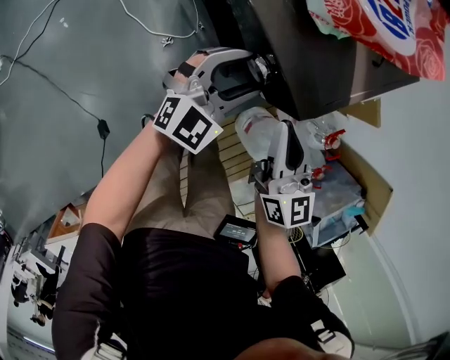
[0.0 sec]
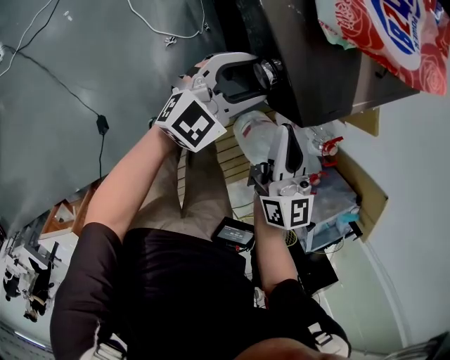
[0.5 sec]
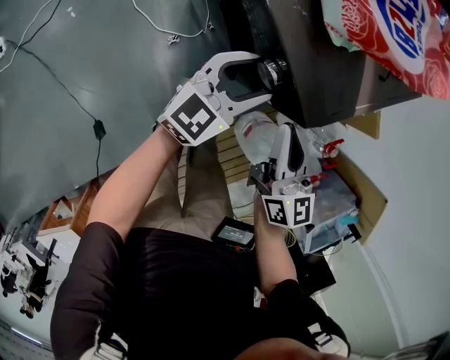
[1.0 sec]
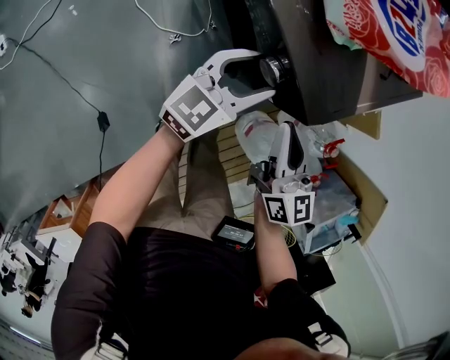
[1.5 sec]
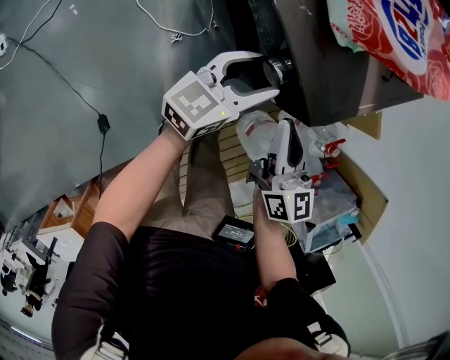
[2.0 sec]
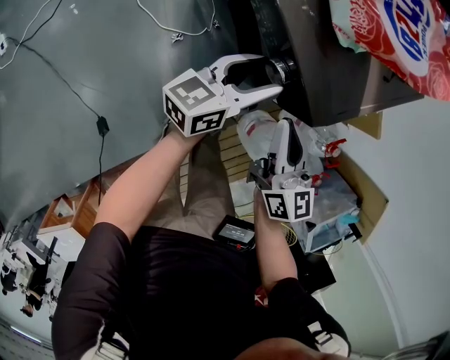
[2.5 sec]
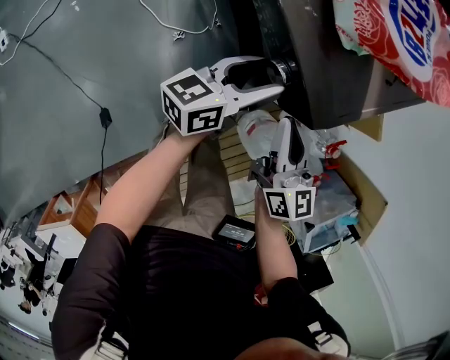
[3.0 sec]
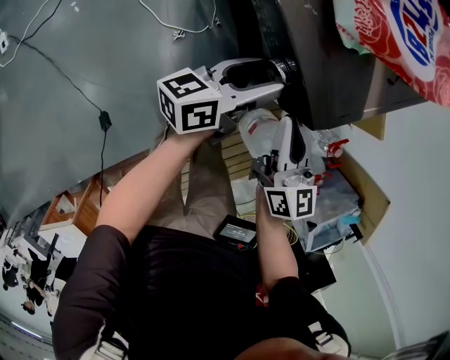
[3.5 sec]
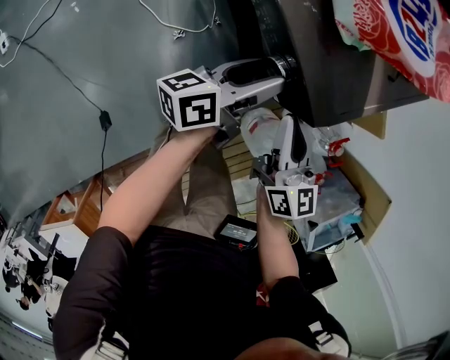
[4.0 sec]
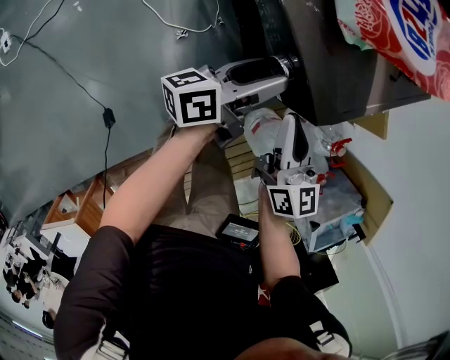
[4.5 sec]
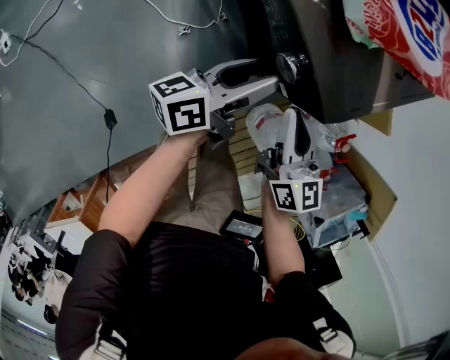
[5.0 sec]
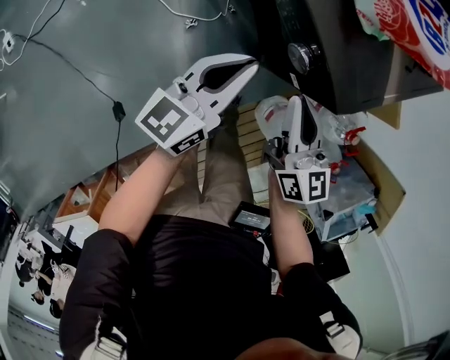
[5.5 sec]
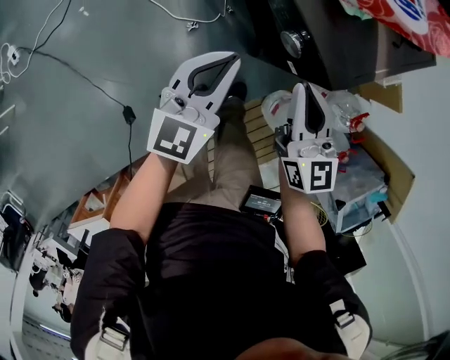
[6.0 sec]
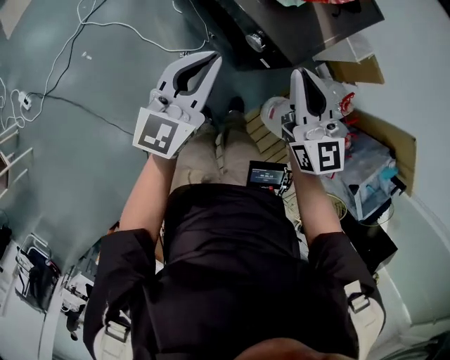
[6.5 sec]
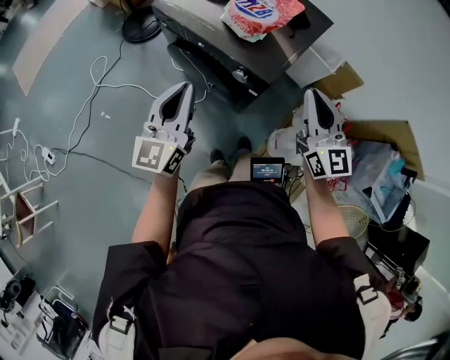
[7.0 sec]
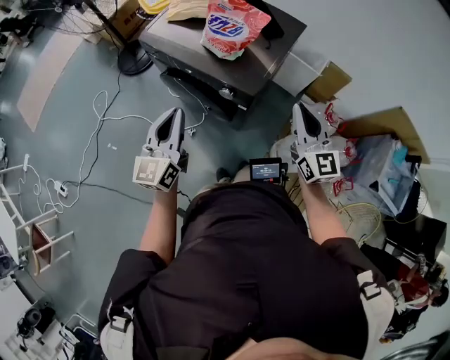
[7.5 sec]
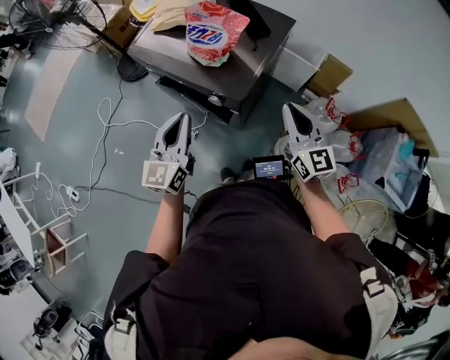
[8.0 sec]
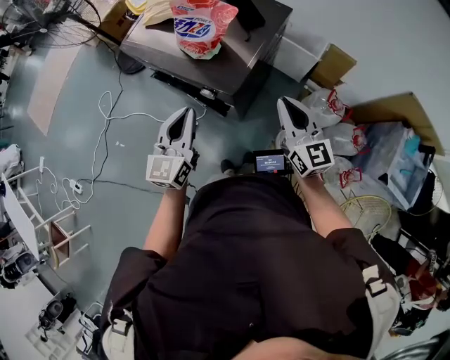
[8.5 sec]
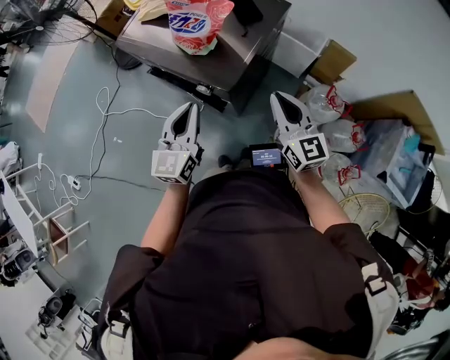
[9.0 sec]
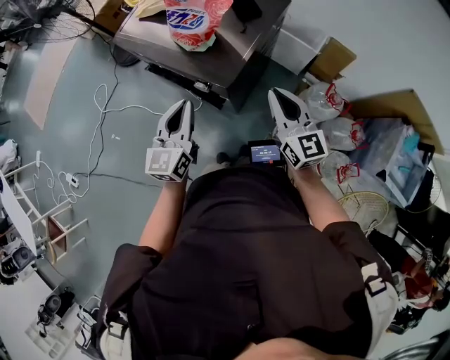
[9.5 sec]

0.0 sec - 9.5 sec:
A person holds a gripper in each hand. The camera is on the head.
0.0 sec - 2.0 sec: The left gripper rolls counterclockwise, seen from behind, by approximately 40 degrees.
2.0 sec - 4.0 sec: The left gripper turns by roughly 40 degrees.
4.0 sec - 5.5 sec: The left gripper goes roughly 5 cm to the left, rotates roughly 30 degrees, and closes its fingers.
5.5 sec - 7.5 sec: The left gripper heads upward, covering approximately 25 cm, and turns by some 20 degrees; the right gripper travels upward and to the right by some 30 cm, and swivels approximately 30 degrees.
7.5 sec - 9.5 sec: The left gripper goes roughly 15 cm to the right; the right gripper is displaced downward by roughly 5 cm.

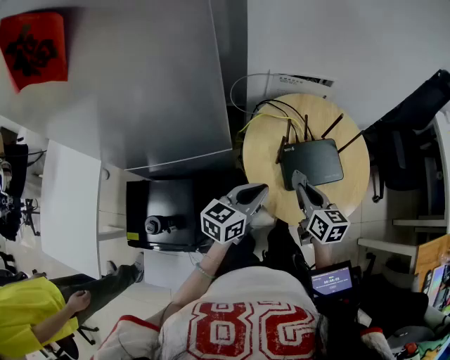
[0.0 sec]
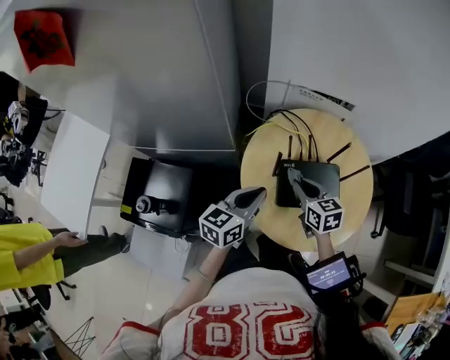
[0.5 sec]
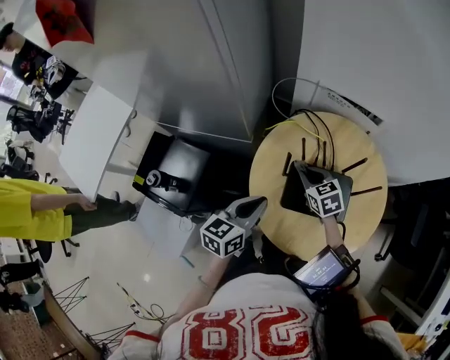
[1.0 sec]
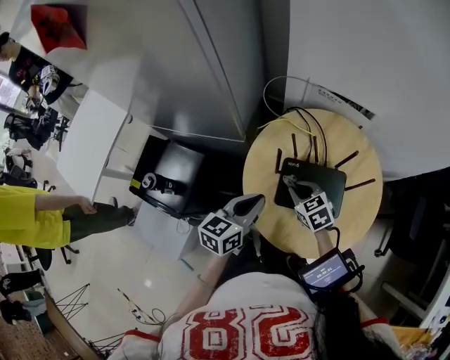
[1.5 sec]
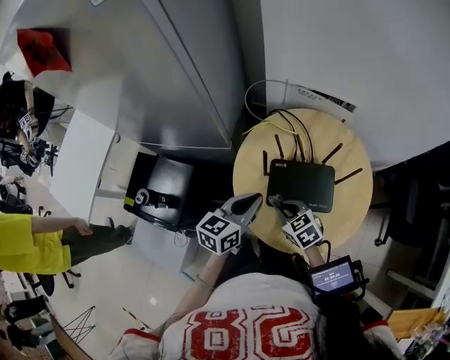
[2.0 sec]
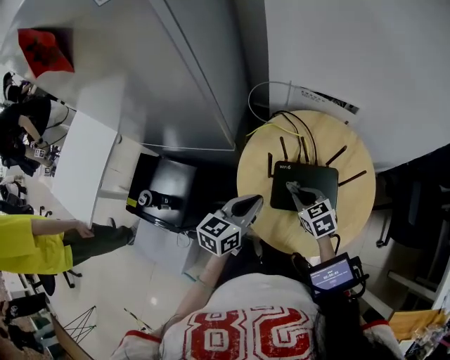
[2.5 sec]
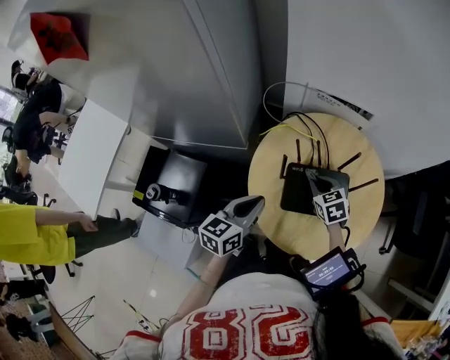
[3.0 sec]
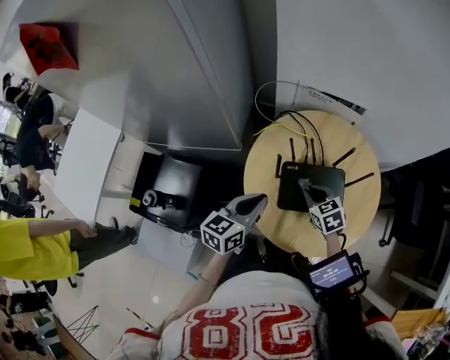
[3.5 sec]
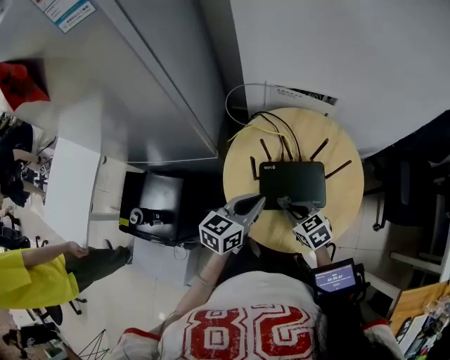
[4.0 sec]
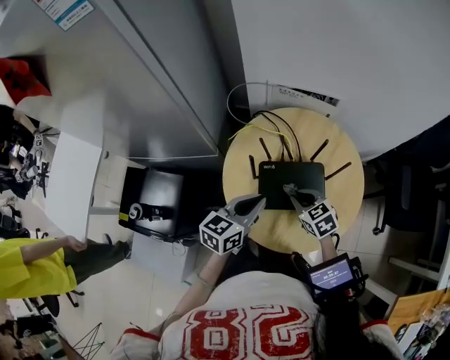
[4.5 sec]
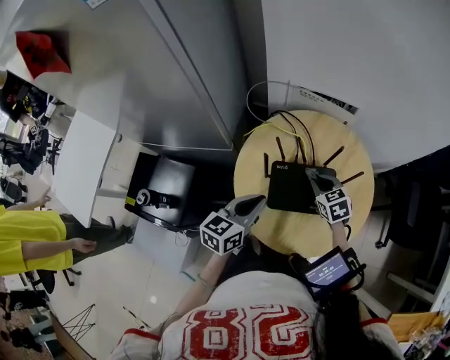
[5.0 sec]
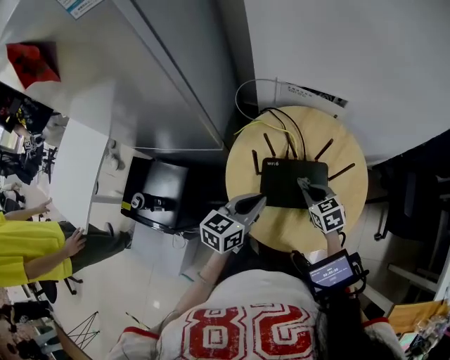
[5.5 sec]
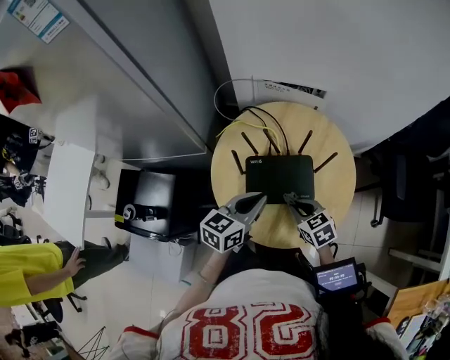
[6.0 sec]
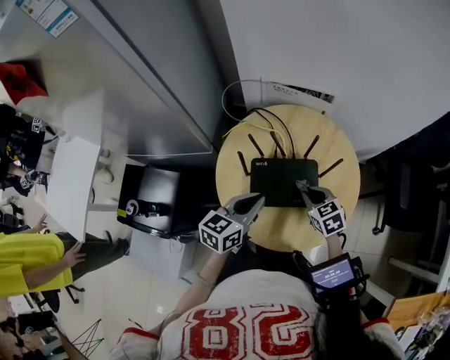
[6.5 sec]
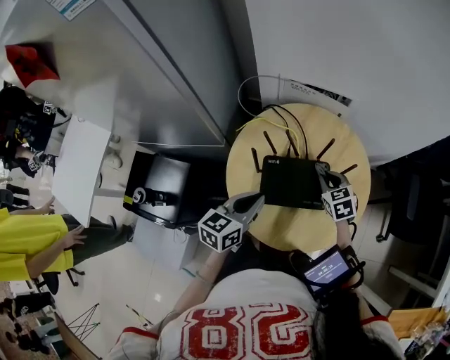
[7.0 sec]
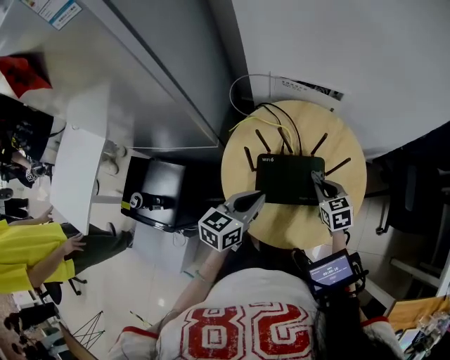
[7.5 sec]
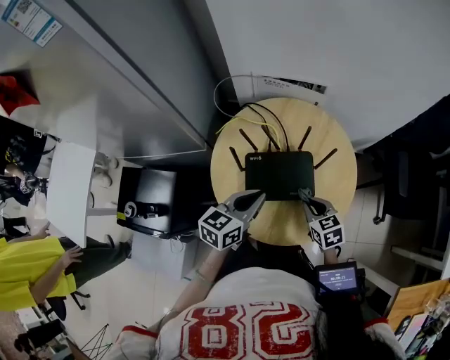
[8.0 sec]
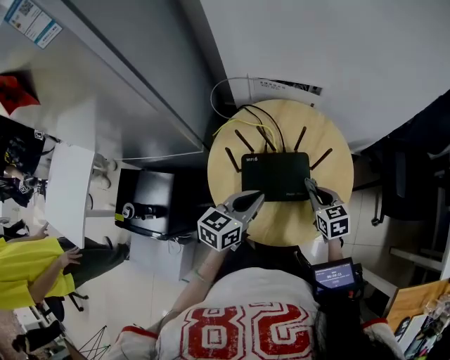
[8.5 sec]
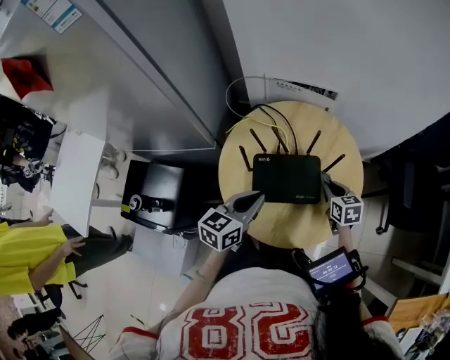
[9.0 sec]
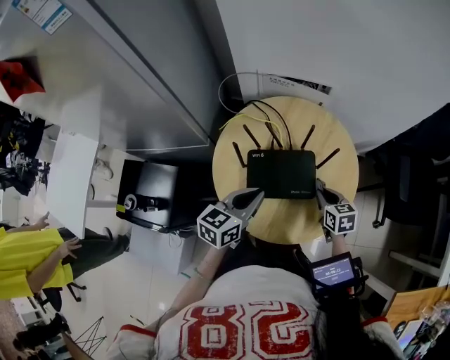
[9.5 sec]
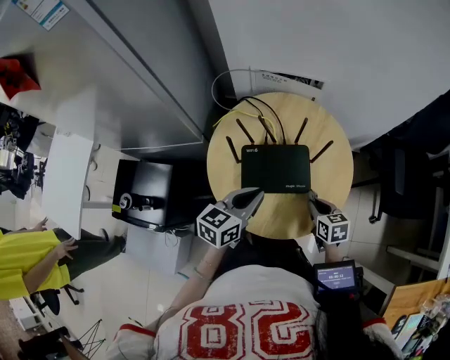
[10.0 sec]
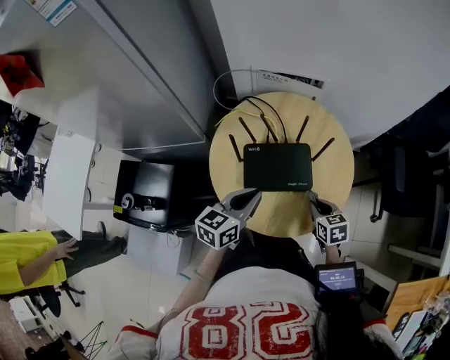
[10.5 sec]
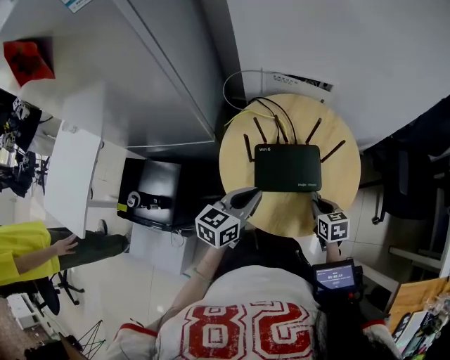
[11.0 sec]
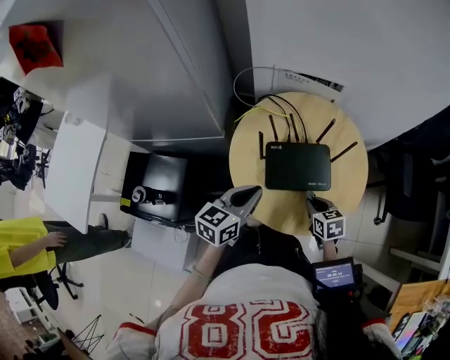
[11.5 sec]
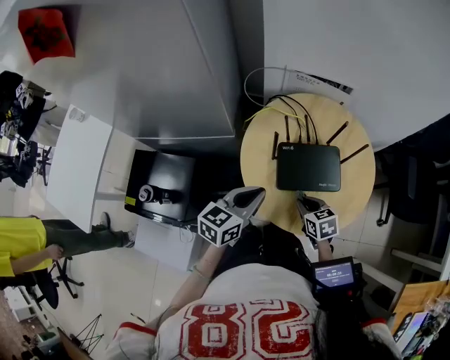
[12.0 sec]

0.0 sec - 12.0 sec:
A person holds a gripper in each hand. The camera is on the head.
0.0 sec - 2.0 sec: The left gripper ends up about 5 cm from where it was, and turns by some 20 degrees. Meanwhile the right gripper moves downward, about 10 cm, and changes its angle by approximately 50 degrees.
2.0 sec - 4.0 sec: The right gripper moves to the right, roughly 5 cm, and travels forward and back again, some 10 cm each way.
4.0 sec - 6.0 sec: Both grippers travel together to the right, roughly 5 cm. The right gripper goes forward and returns, about 10 cm each way.
6.0 sec - 8.0 sec: The right gripper reaches approximately 15 cm forward, then returns.
8.0 sec - 10.0 sec: The right gripper goes forward and returns, roughly 10 cm each way.
10.0 sec - 12.0 sec: Both grippers travel together to the left, approximately 15 cm.

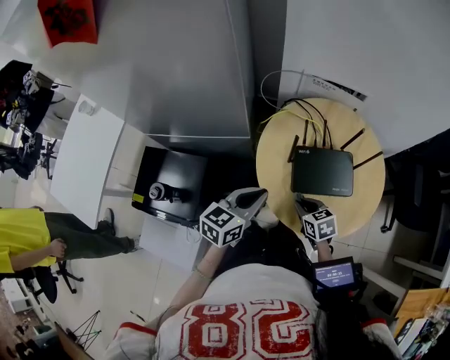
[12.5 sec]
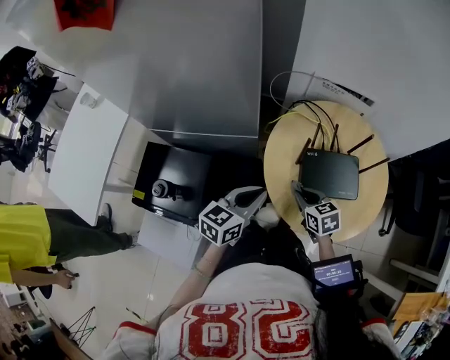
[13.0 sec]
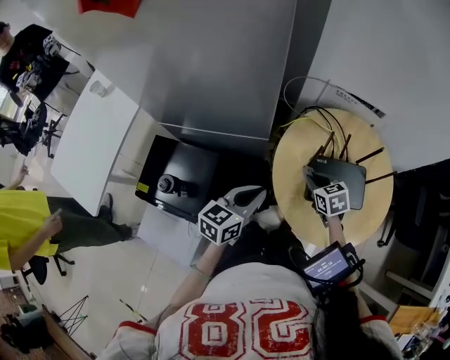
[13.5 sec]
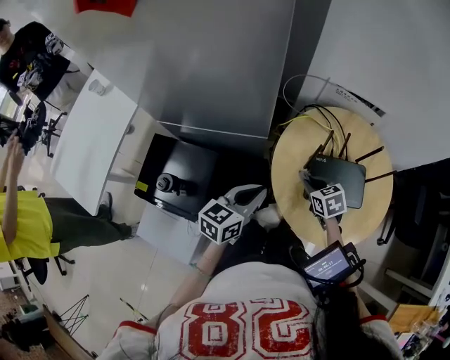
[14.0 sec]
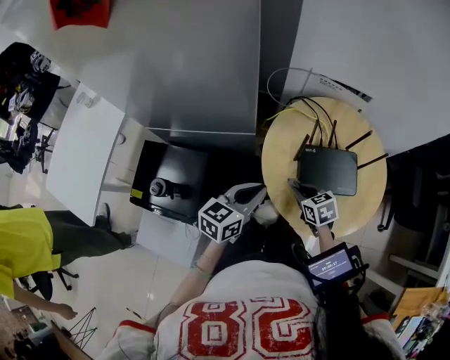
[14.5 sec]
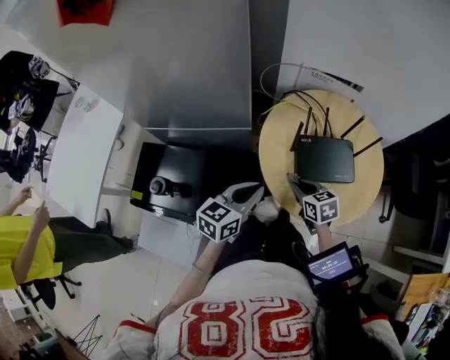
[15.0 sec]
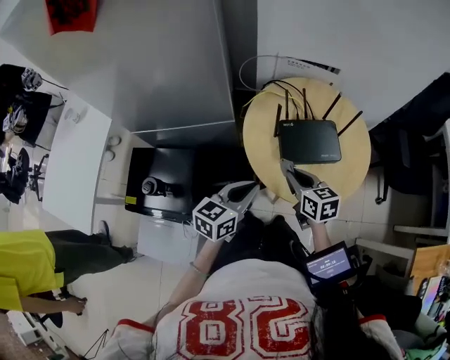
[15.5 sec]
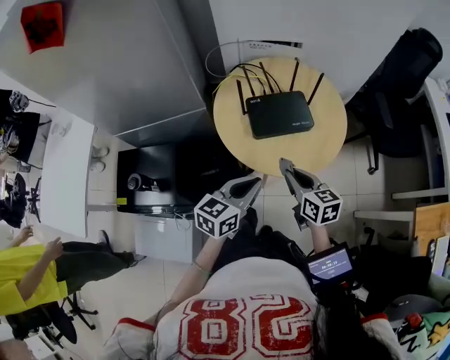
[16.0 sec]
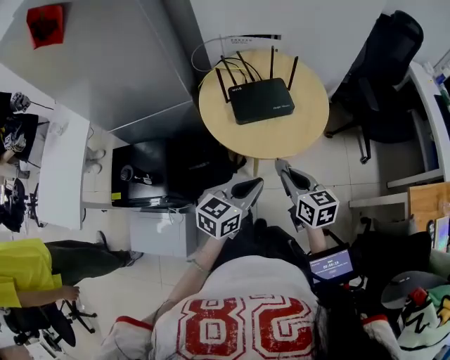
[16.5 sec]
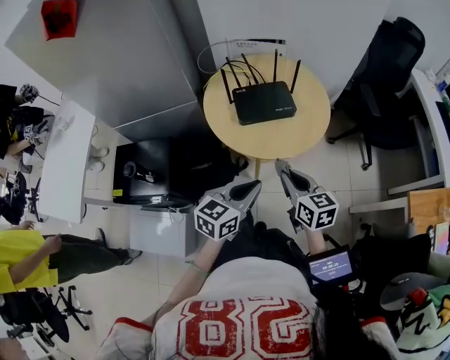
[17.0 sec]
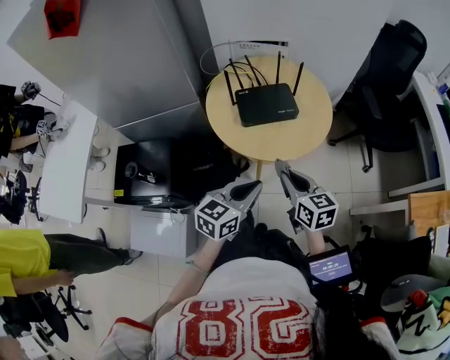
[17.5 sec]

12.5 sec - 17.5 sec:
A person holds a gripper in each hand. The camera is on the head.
12.5 sec - 15.0 sec: The right gripper moves some 10 cm forward and comes back.
15.0 sec - 17.5 sec: The right gripper moves backward, to the right and upward, roughly 25 cm, and changes its angle by some 30 degrees. Meanwhile the left gripper travels to the right and backward by some 25 cm.
